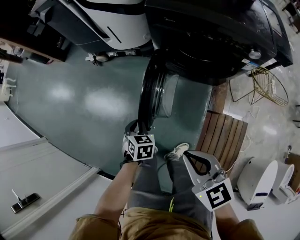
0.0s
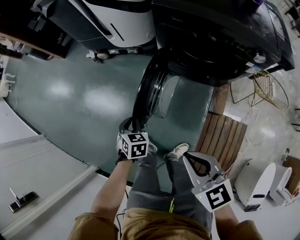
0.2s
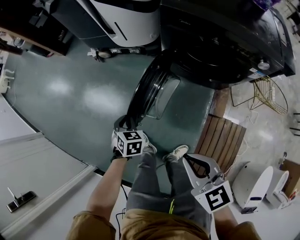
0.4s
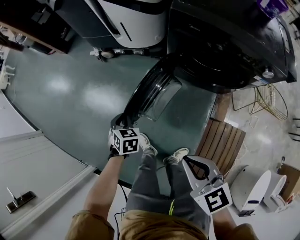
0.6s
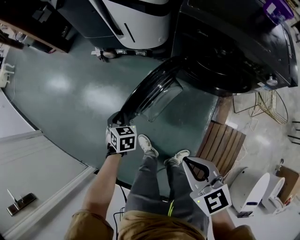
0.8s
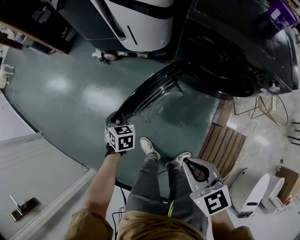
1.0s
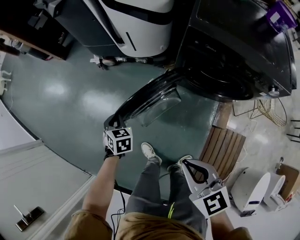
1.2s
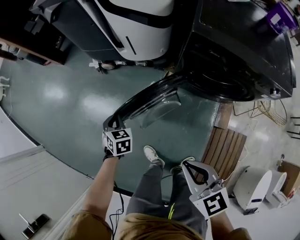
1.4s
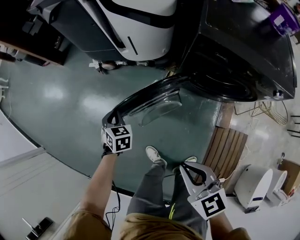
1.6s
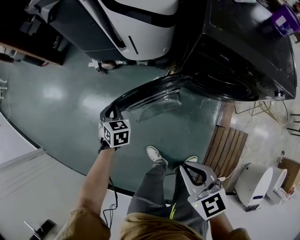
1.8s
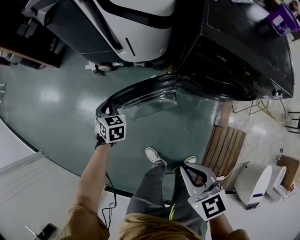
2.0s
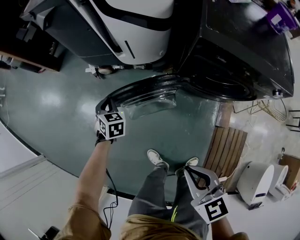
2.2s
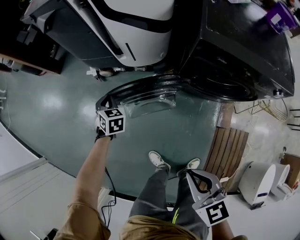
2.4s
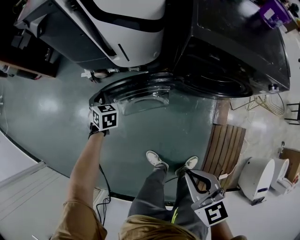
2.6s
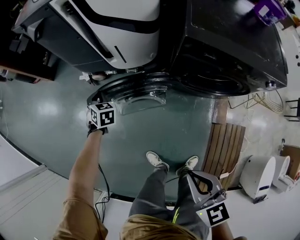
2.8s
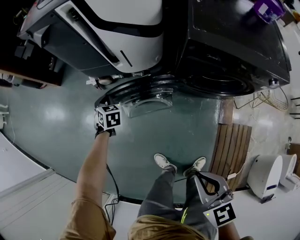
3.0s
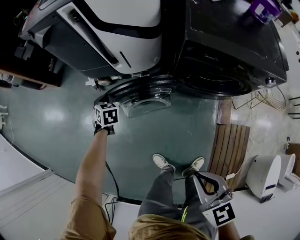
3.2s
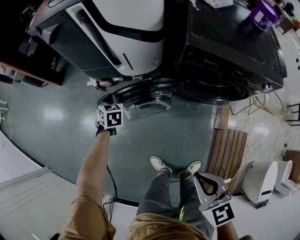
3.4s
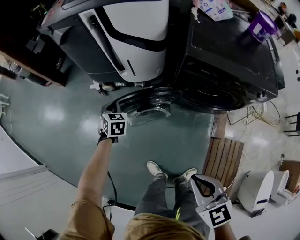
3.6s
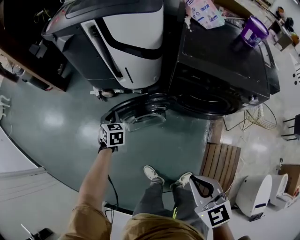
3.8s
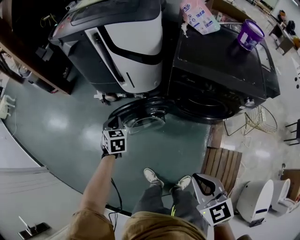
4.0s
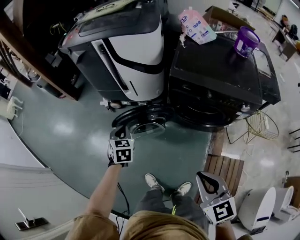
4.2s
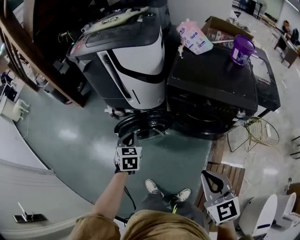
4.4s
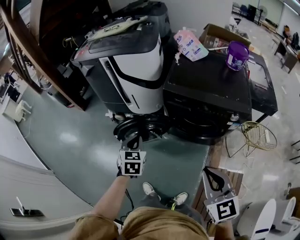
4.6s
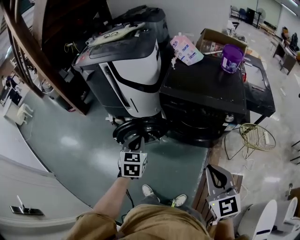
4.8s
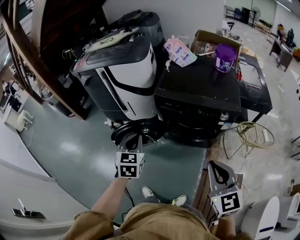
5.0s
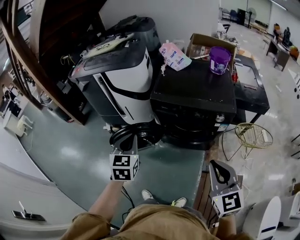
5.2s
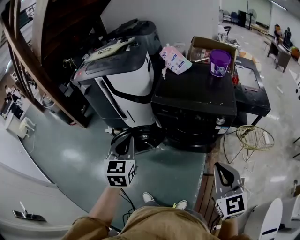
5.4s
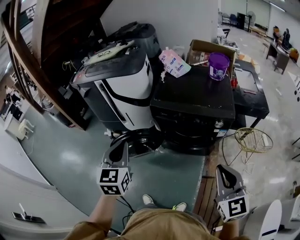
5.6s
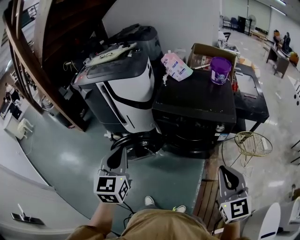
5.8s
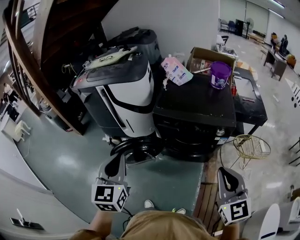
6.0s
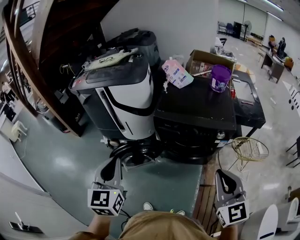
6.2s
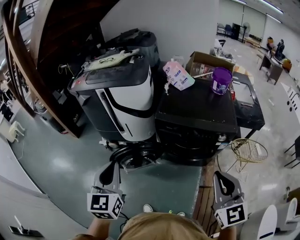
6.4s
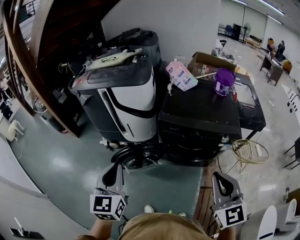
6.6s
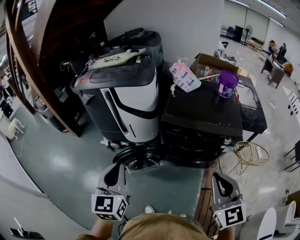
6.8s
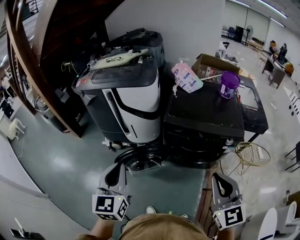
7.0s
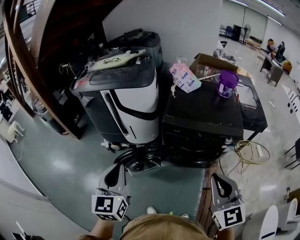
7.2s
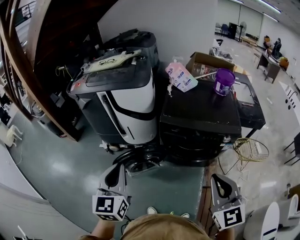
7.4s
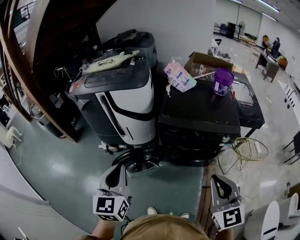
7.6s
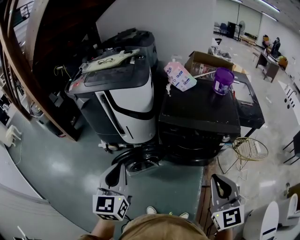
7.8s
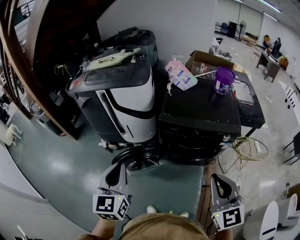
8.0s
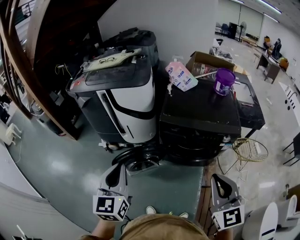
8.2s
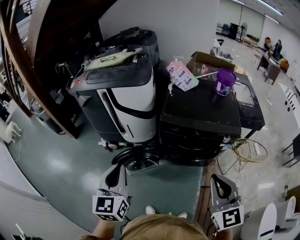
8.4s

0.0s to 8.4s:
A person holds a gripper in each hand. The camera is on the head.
0.0s to 1.4s: The right gripper moves forward, about 15 cm, while the left gripper is displaced forward and to the left by some 30 cm.
1.4s to 2.8s: The left gripper heads forward, covering roughly 20 cm.
2.8s to 4.2s: The left gripper shifts approximately 25 cm backward, upward and to the right. Meanwhile the right gripper heads upward, to the right and backward, covering approximately 20 cm.
4.2s to 5.6s: The right gripper shifts some 25 cm to the right and upward, and turns by roughly 20 degrees; the left gripper shifts about 35 cm upward, to the right and backward, and swivels some 30 degrees.
5.6s to 7.0s: The left gripper shifts some 10 cm to the left; the right gripper is displaced to the left and forward by roughly 15 cm.
7.0s to 8.4s: The grippers stay close to where they were, moving slightly.

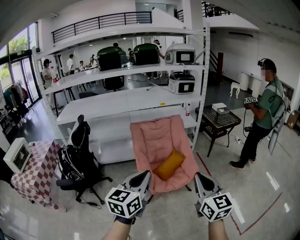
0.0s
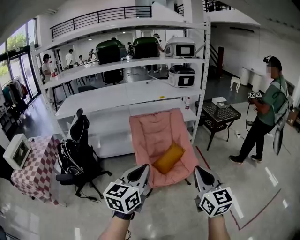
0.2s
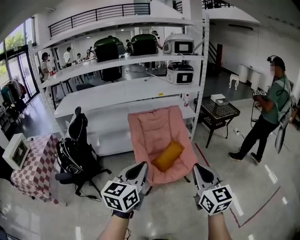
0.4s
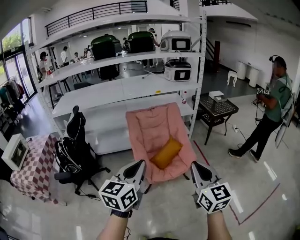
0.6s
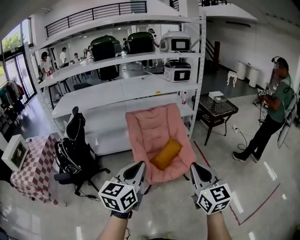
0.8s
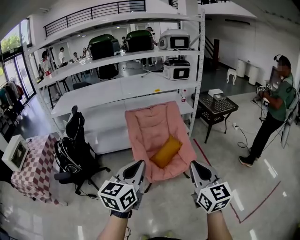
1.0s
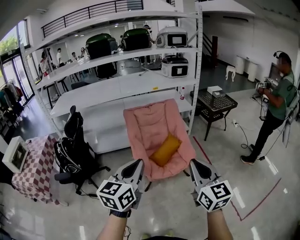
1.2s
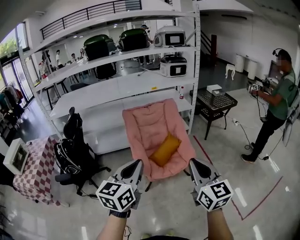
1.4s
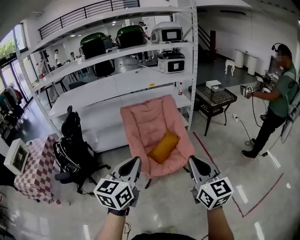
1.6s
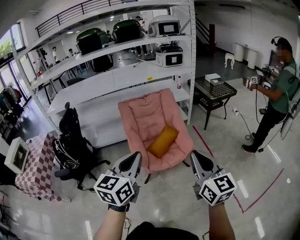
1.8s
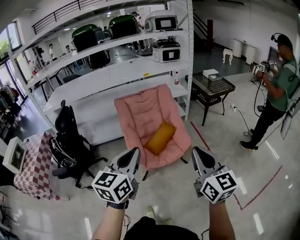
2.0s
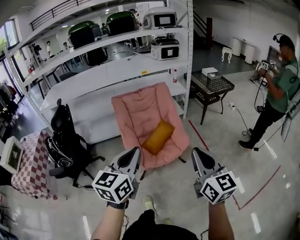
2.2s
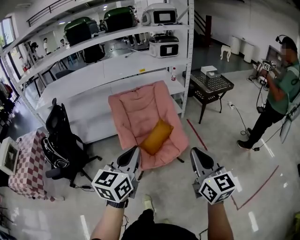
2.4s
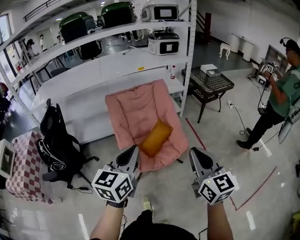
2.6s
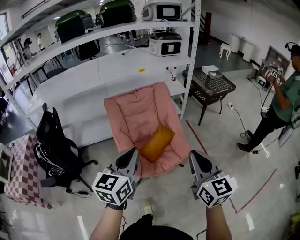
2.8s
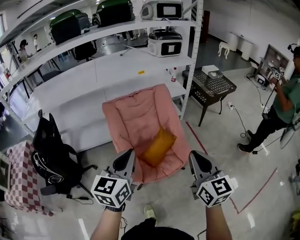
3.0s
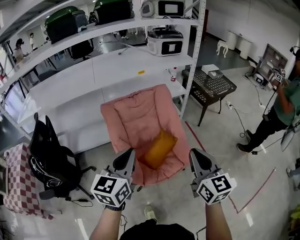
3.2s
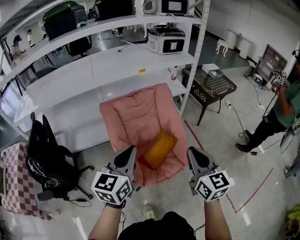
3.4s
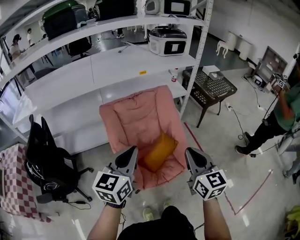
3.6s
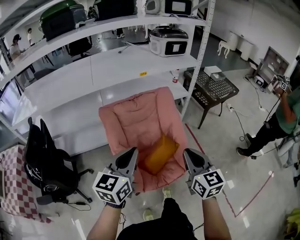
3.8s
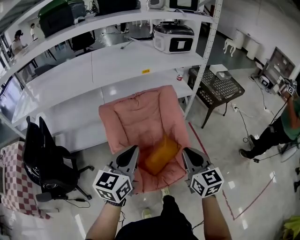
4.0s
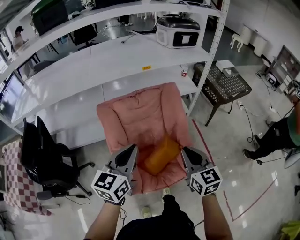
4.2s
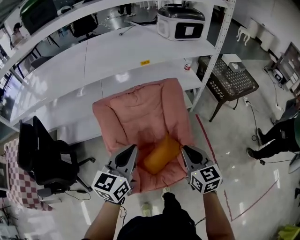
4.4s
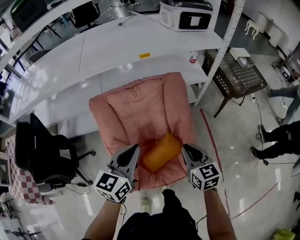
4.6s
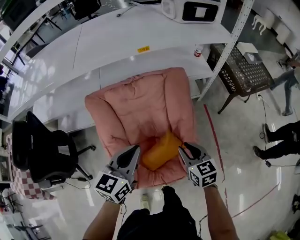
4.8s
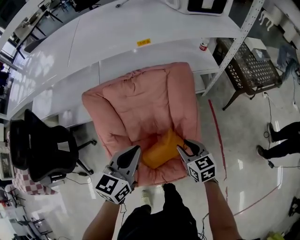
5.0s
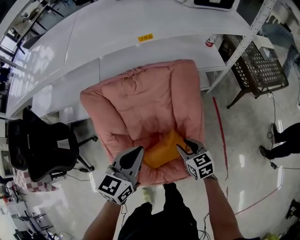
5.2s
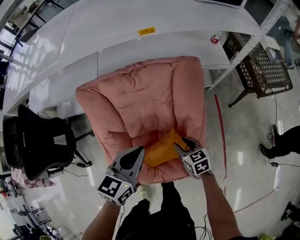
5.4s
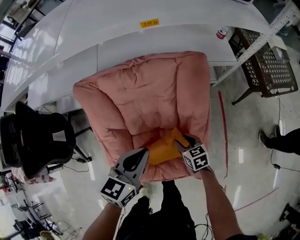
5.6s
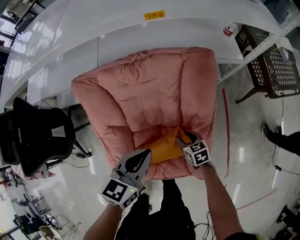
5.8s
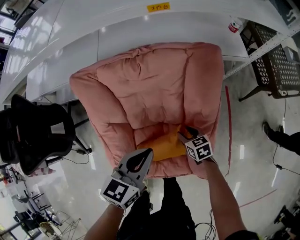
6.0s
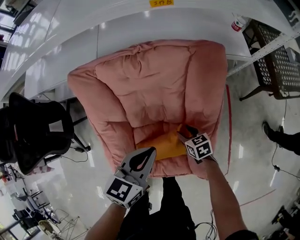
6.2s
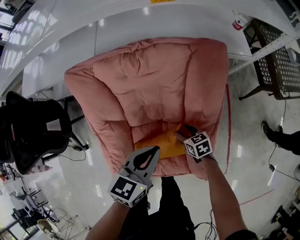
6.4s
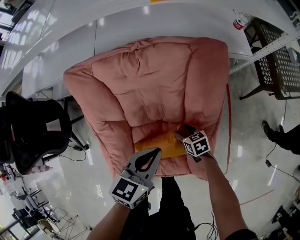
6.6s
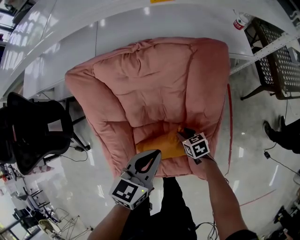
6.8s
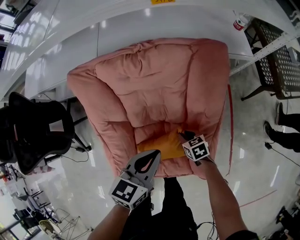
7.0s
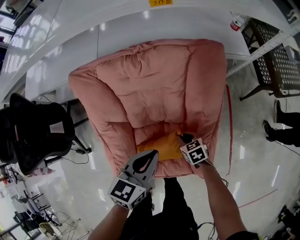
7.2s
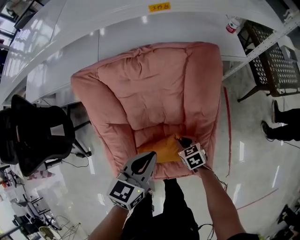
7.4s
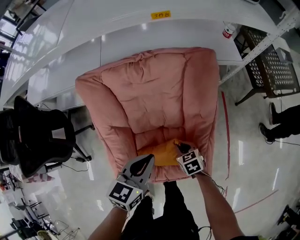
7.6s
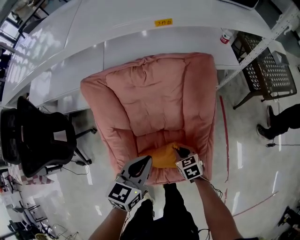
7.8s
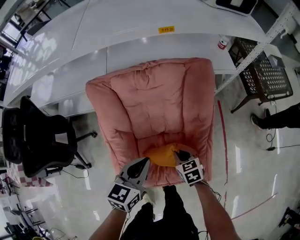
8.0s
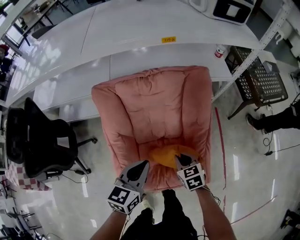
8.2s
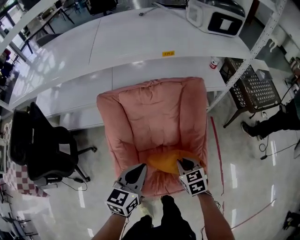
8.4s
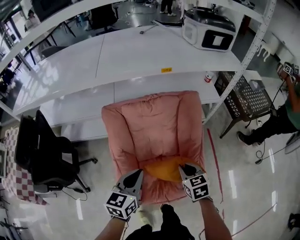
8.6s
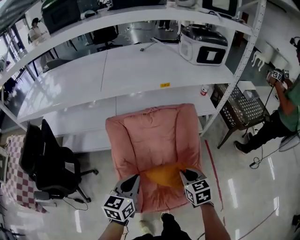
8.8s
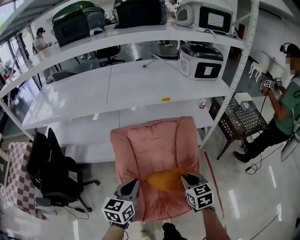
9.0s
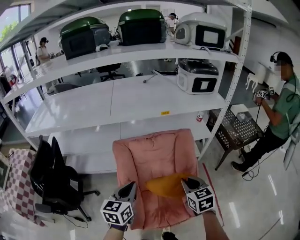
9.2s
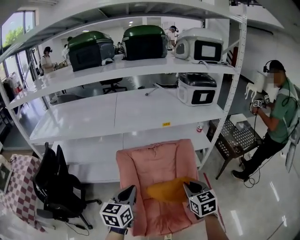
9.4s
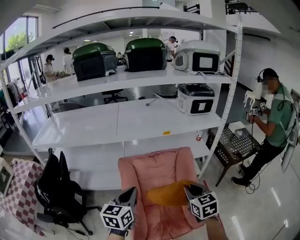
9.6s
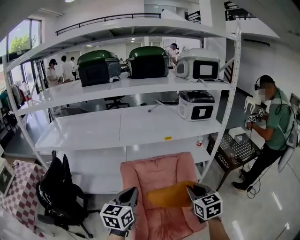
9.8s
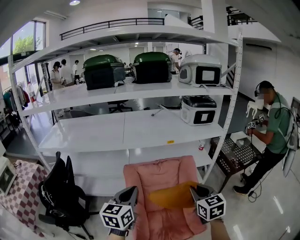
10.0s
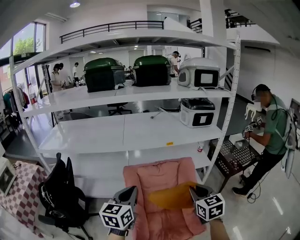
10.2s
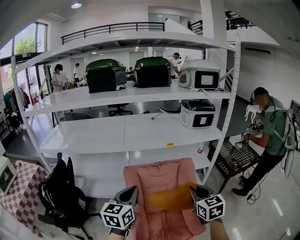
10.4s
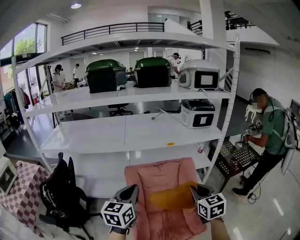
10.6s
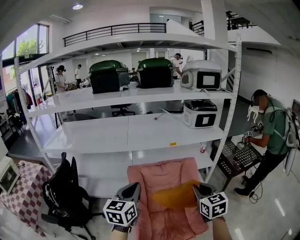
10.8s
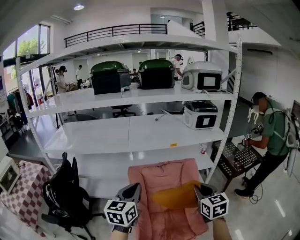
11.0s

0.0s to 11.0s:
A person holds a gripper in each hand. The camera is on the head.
0.0s to 1.6s: The grippers stay close to where they were, moving slightly.
1.6s to 3.2s: The two grippers go roughly 30 cm forward.
3.2s to 4.8s: The grippers both shift forward and downward by some 40 cm. The right gripper turns by approximately 30 degrees, and opens its fingers.
4.8s to 6.2s: The left gripper goes some 20 cm downward and forward. Meanwhile the right gripper heads downward, covering roughly 30 cm, swivels some 30 degrees, and opens up.
6.2s to 7.8s: The left gripper travels backward by about 5 cm. Meanwhile the right gripper goes about 10 cm backward, upward and to the left, and closes its fingers.
7.8s to 9.4s: The right gripper moves upward, about 40 cm, and turns by about 30 degrees. The left gripper heads upward and to the left, covering roughly 30 cm.
9.4s to 11.0s: The left gripper goes roughly 10 cm upward. The right gripper travels upward and backward by approximately 10 cm.

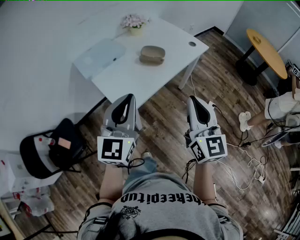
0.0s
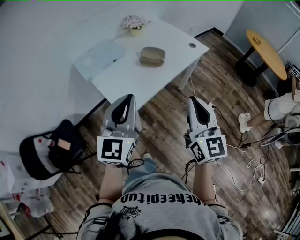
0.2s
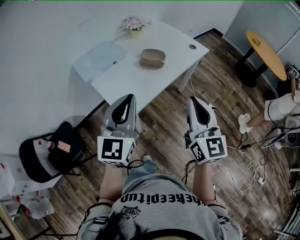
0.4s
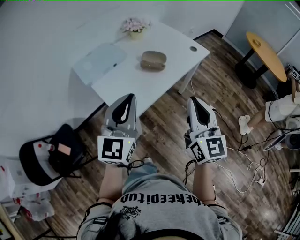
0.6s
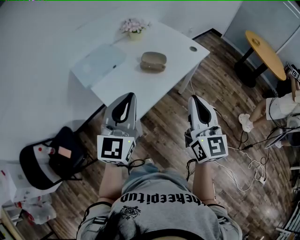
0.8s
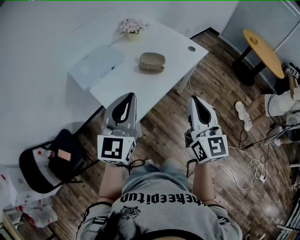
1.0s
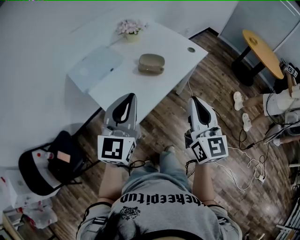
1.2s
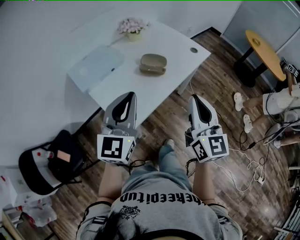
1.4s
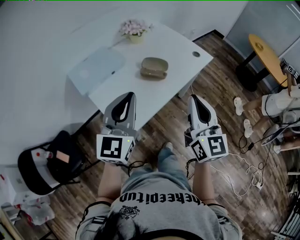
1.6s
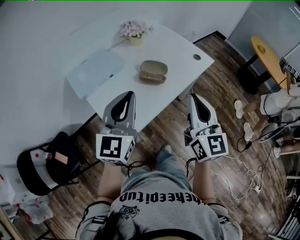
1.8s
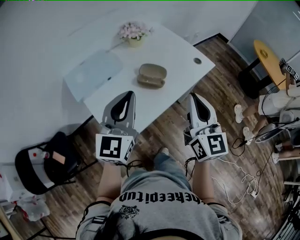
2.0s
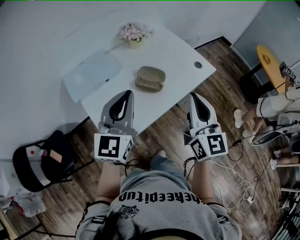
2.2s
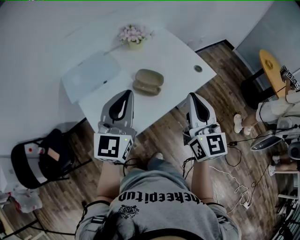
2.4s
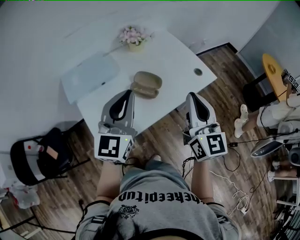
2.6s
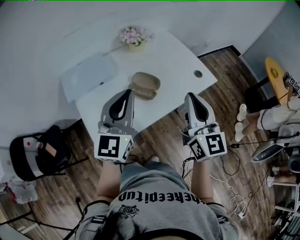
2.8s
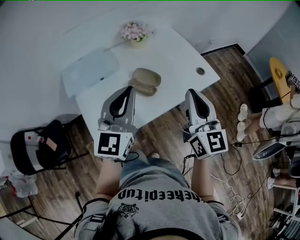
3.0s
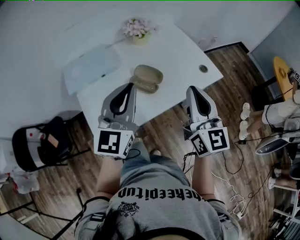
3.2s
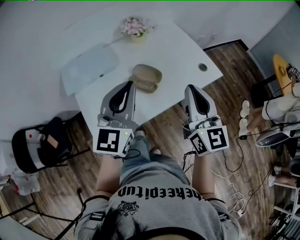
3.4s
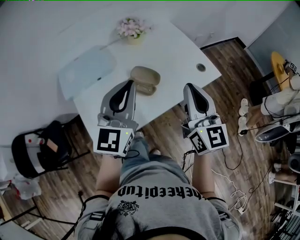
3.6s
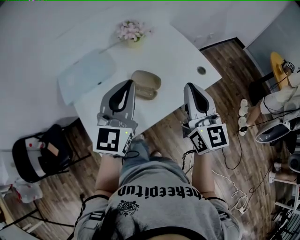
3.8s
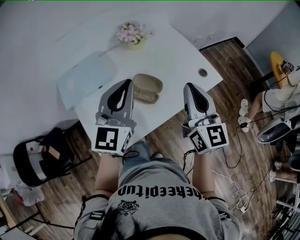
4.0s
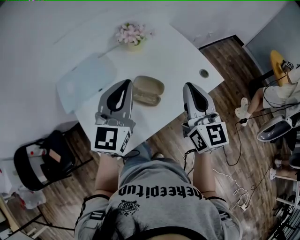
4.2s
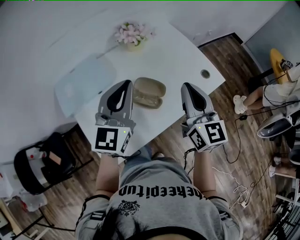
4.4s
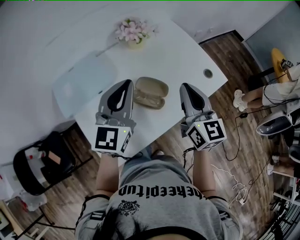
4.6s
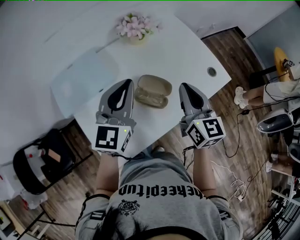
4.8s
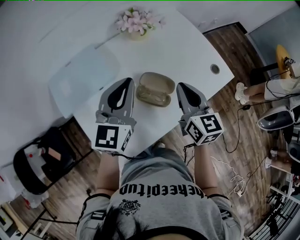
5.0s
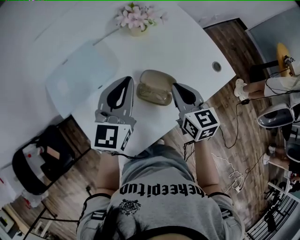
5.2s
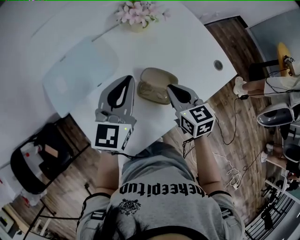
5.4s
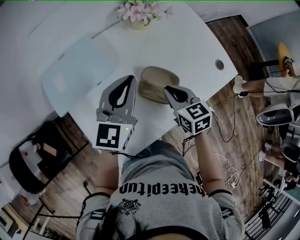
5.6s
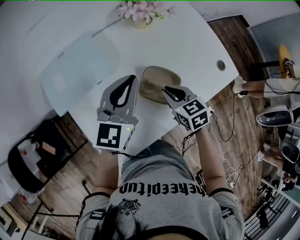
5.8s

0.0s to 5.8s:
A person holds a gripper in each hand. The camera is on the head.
0.0s to 1.4s: Both grippers travel together forward, roughly 10 cm.
1.4s to 2.8s: Both grippers move forward and to the right, approximately 20 cm.
2.8s to 4.4s: The two grippers go approximately 10 cm forward.
4.4s to 5.8s: The left gripper travels downward and forward by approximately 10 cm; the right gripper goes about 25 cm downward, and points its fingers roughly 40 degrees further downward.
